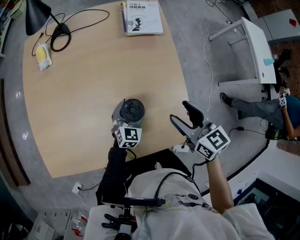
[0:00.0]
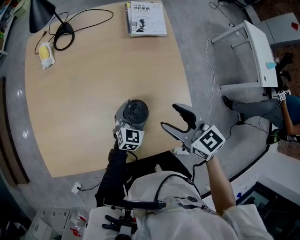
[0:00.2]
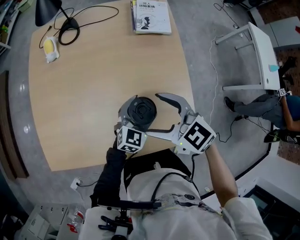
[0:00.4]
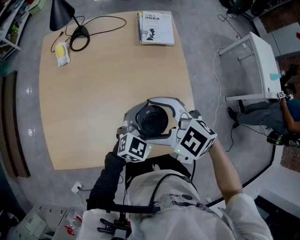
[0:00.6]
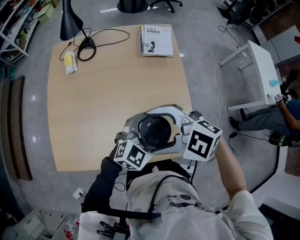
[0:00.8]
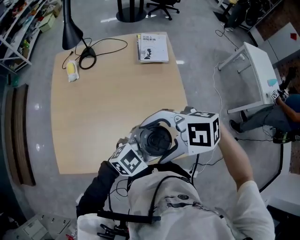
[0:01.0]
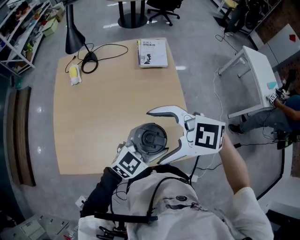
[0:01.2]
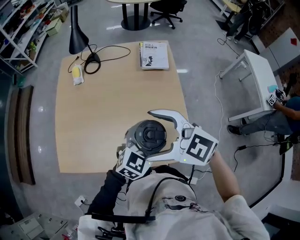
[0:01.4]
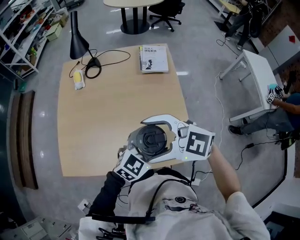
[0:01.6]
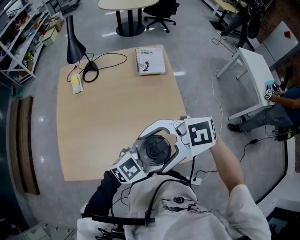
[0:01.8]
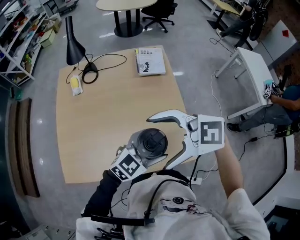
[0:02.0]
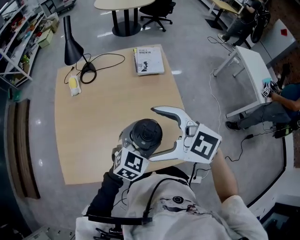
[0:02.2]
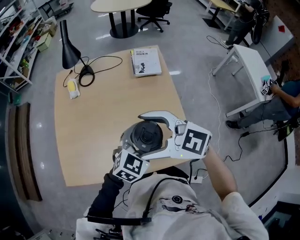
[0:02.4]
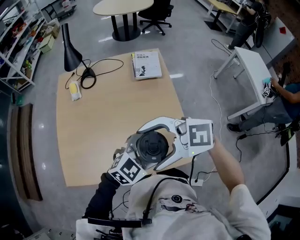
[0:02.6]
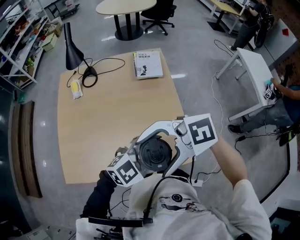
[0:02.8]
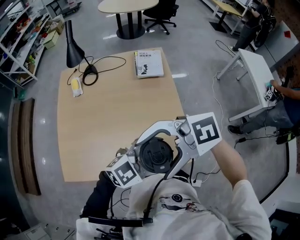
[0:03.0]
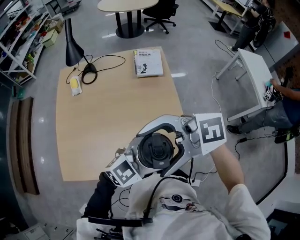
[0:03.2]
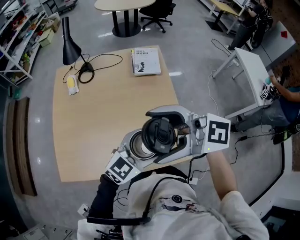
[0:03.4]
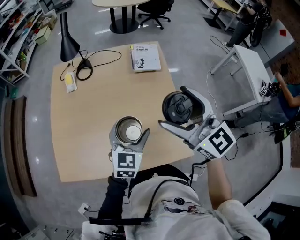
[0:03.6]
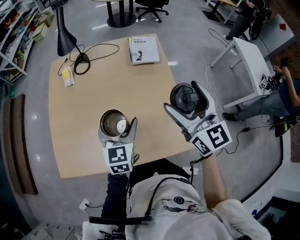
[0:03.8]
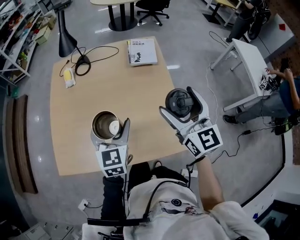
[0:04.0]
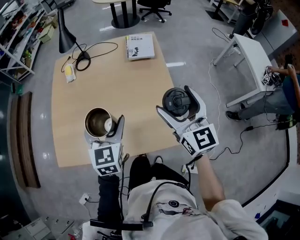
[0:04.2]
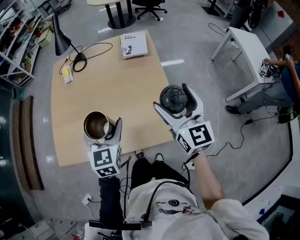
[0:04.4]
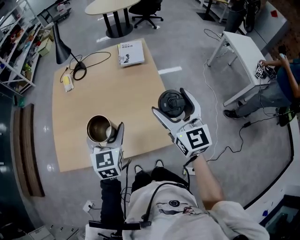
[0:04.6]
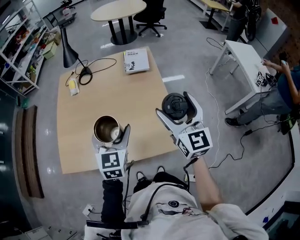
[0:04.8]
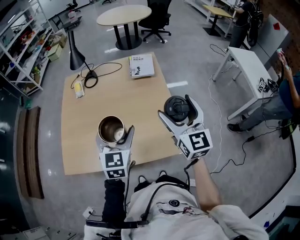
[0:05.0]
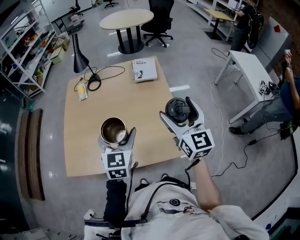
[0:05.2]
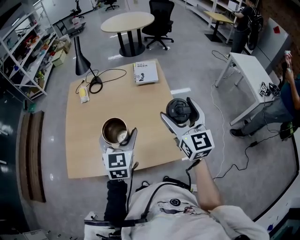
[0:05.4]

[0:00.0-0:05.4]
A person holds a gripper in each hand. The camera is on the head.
0:00.0 to 0:01.4: The right gripper heads upward, covering roughly 15 cm, rotates about 50 degrees, and opens its fingers; the left gripper goes about 25 cm upward.
0:01.4 to 0:02.8: The left gripper shifts by approximately 10 cm, and swivels approximately 30 degrees, while the right gripper ends up roughly 10 cm from where it was, and changes its angle by roughly 40 degrees.
0:02.8 to 0:04.0: The left gripper changes place by some 20 cm, and changes its angle by roughly 70 degrees; the right gripper changes place by some 20 cm, and turns by some 90 degrees.
0:04.0 to 0:05.4: The left gripper goes approximately 10 cm backward and upward. The right gripper shifts approximately 5 cm backward.

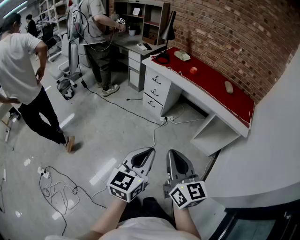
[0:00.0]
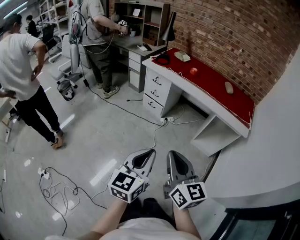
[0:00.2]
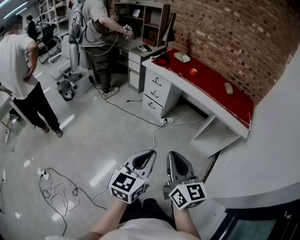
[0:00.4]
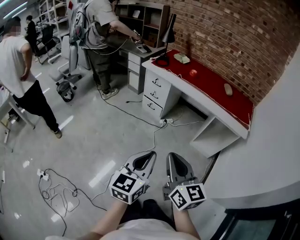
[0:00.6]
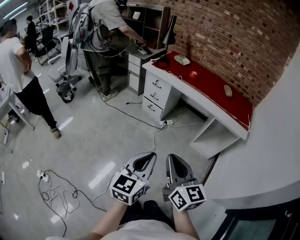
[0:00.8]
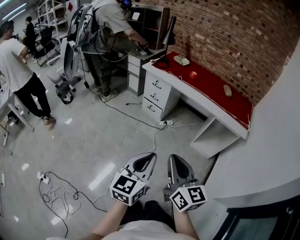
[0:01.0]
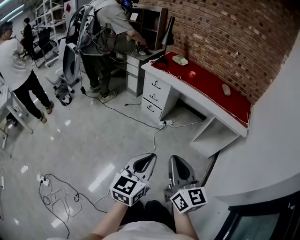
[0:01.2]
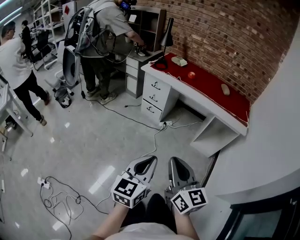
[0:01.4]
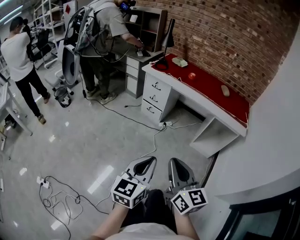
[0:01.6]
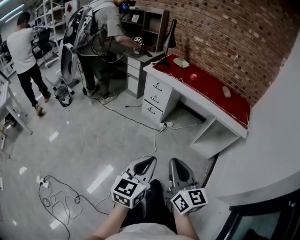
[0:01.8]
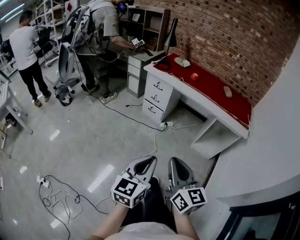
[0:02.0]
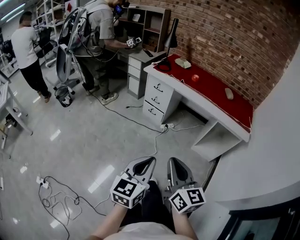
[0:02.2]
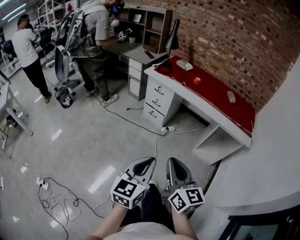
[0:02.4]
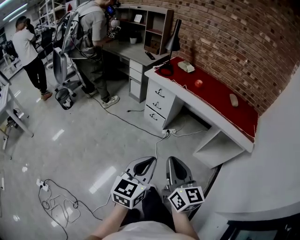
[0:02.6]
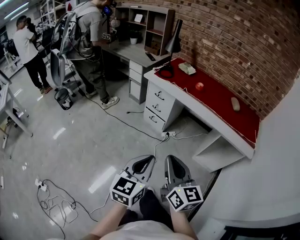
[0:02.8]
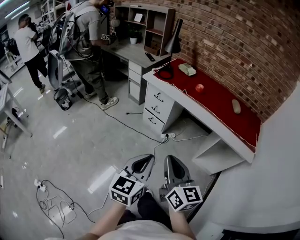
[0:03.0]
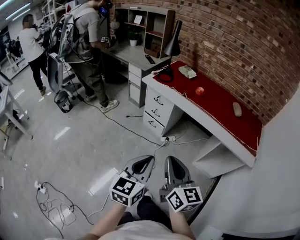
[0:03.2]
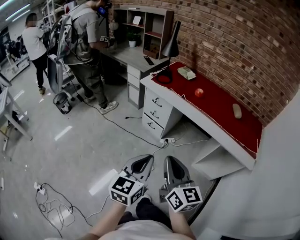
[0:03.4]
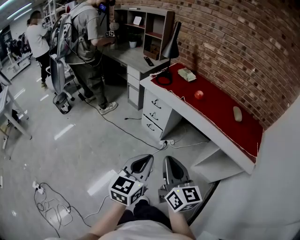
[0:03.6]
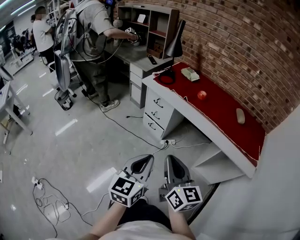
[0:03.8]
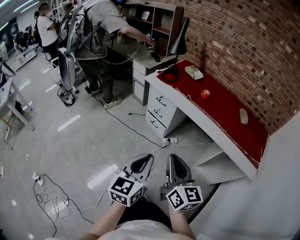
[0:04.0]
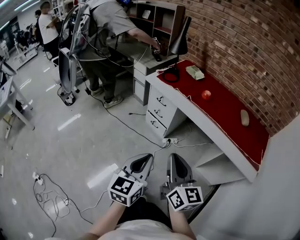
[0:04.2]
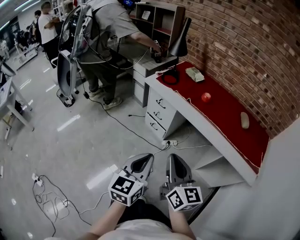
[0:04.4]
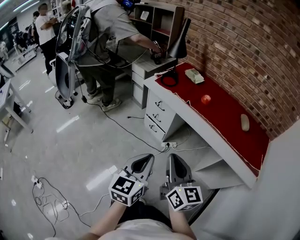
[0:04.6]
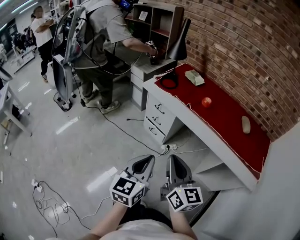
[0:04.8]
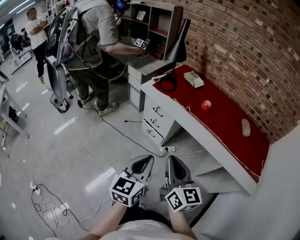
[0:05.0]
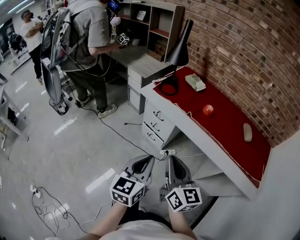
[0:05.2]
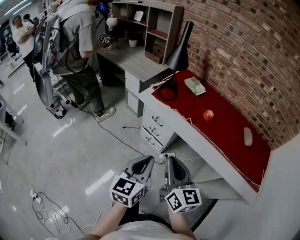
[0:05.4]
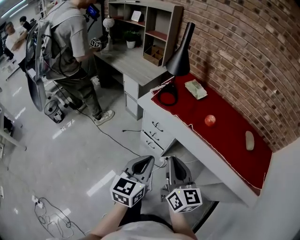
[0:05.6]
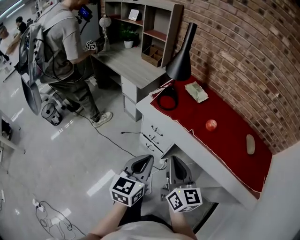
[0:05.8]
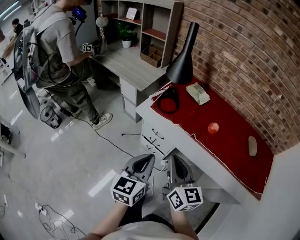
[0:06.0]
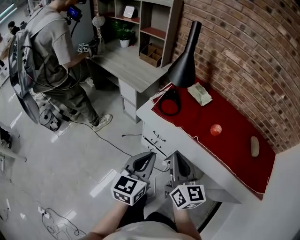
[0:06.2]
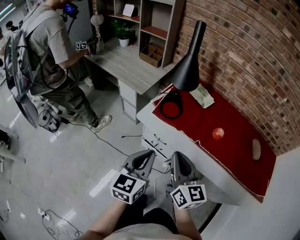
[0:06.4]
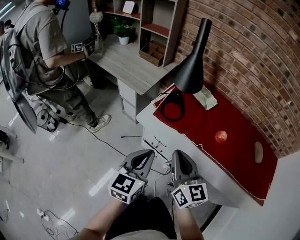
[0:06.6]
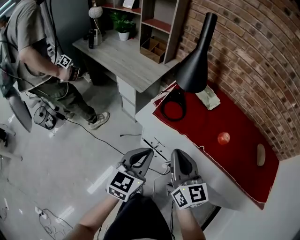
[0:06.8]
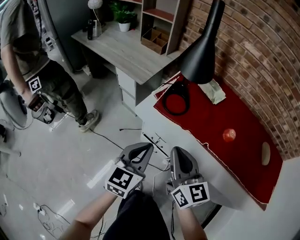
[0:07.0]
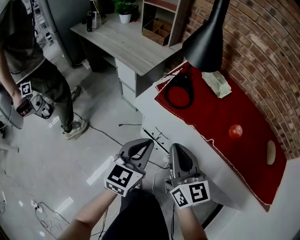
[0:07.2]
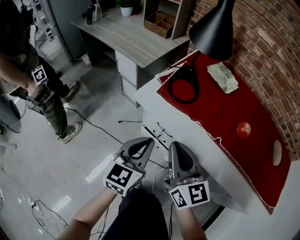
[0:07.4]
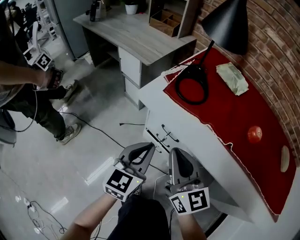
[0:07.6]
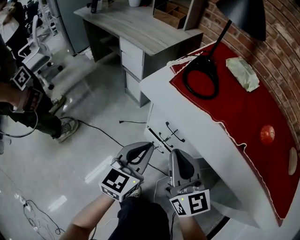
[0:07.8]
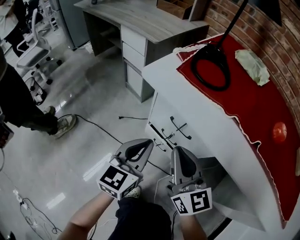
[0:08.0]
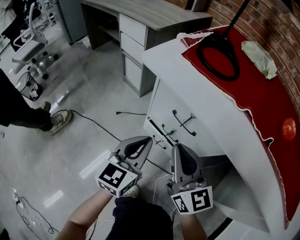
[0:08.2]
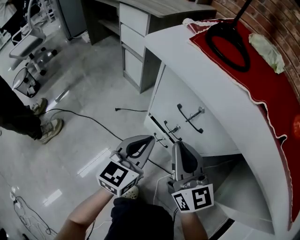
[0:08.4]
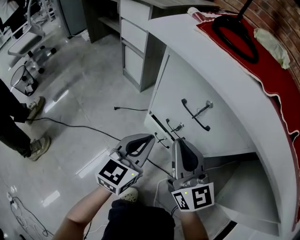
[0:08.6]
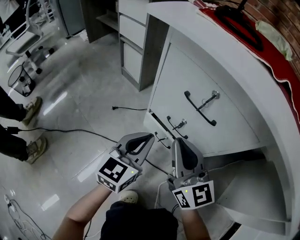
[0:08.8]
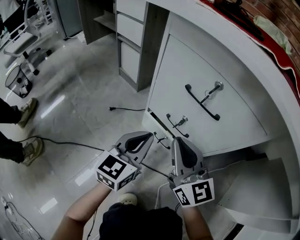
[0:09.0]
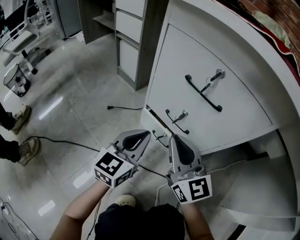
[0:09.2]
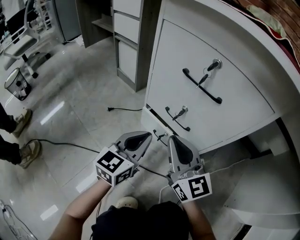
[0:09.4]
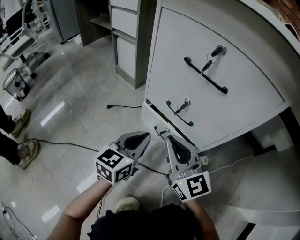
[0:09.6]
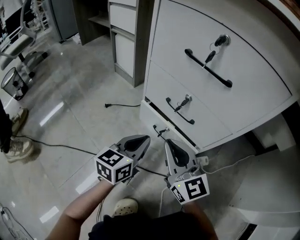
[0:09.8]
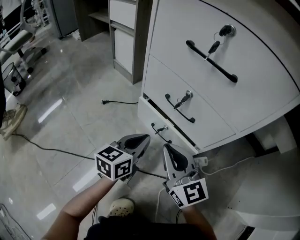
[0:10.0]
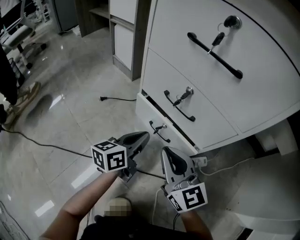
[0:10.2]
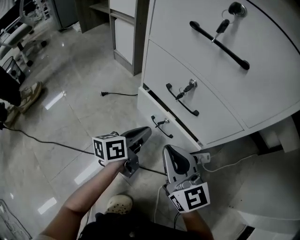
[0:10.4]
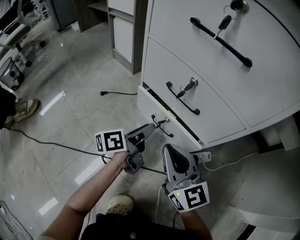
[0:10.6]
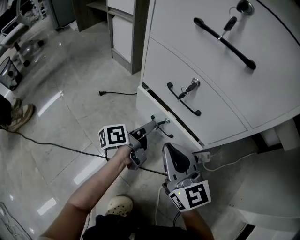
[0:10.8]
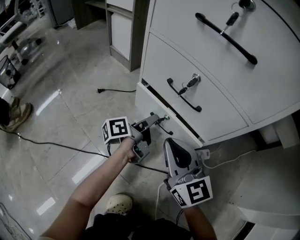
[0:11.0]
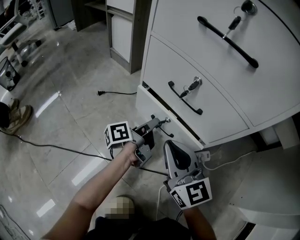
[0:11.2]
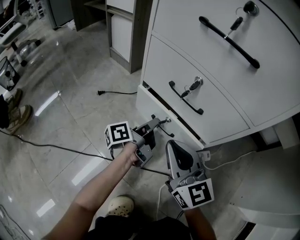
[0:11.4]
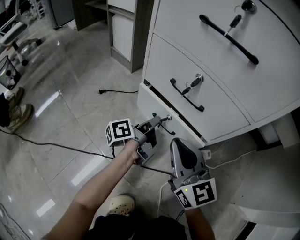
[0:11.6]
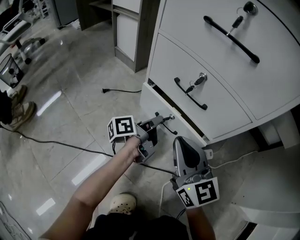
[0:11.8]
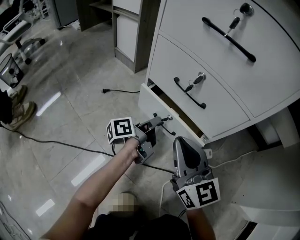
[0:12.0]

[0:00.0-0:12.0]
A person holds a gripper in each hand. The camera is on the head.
0:00.0 to 0:01.6: Both grippers travel together to the left, some 5 cm.
0:01.6 to 0:03.0: Both grippers travel together forward, some 20 cm.
0:03.0 to 0:04.4: The two grippers go approximately 10 cm forward.
0:04.4 to 0:06.0: Both grippers travel together forward, roughly 30 cm.
0:06.0 to 0:07.6: Both grippers move downward and forward, approximately 25 cm.
0:07.6 to 0:09.0: Both grippers travel together downward, some 30 cm.
0:09.0 to 0:10.4: Both grippers move downward, roughly 20 cm. The left gripper rotates around the line of its fingers by roughly 40 degrees, counterclockwise from behind.
0:10.4 to 0:12.0: The left gripper rotates approximately 30 degrees, and opens and closes again.

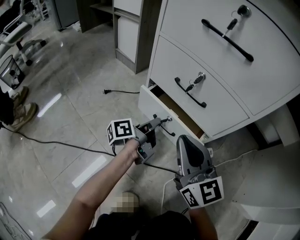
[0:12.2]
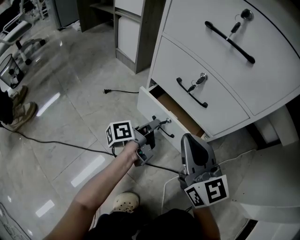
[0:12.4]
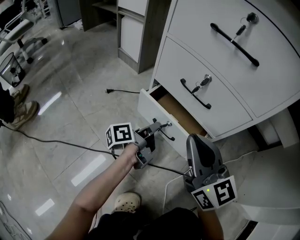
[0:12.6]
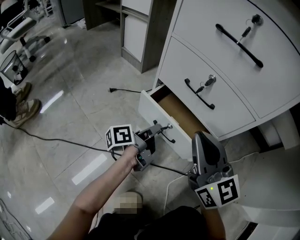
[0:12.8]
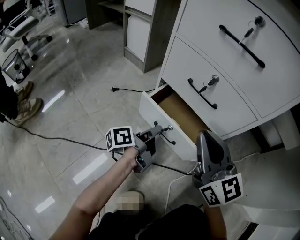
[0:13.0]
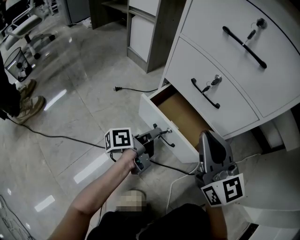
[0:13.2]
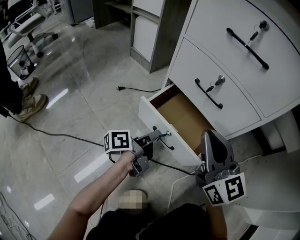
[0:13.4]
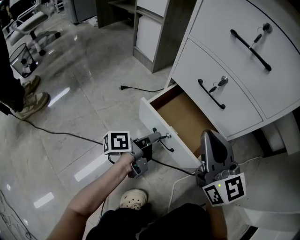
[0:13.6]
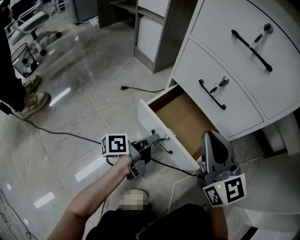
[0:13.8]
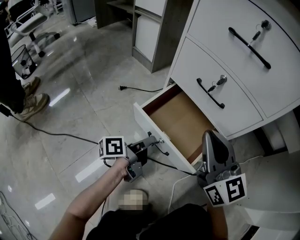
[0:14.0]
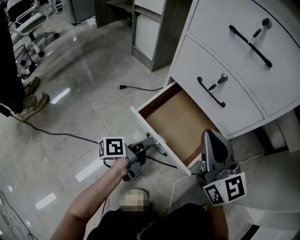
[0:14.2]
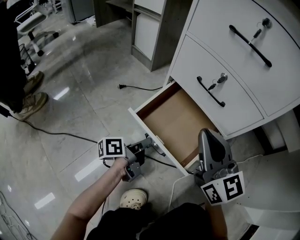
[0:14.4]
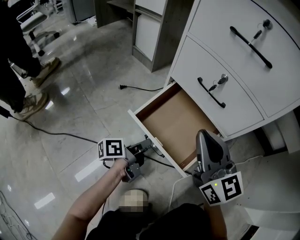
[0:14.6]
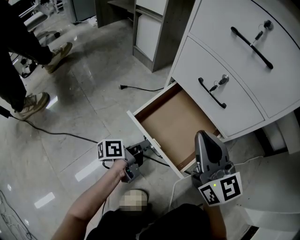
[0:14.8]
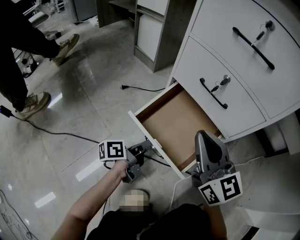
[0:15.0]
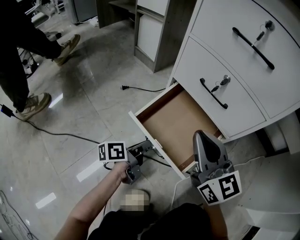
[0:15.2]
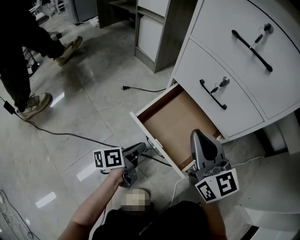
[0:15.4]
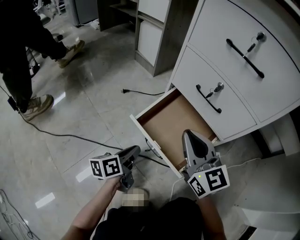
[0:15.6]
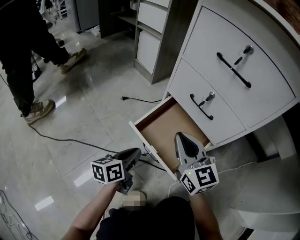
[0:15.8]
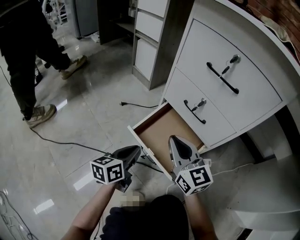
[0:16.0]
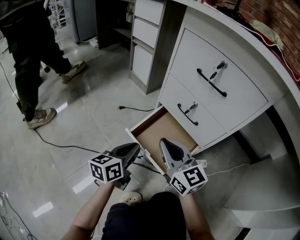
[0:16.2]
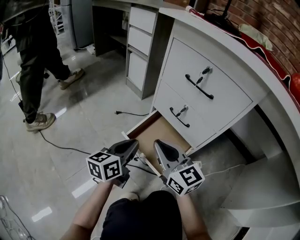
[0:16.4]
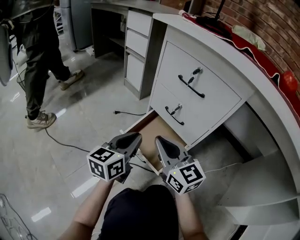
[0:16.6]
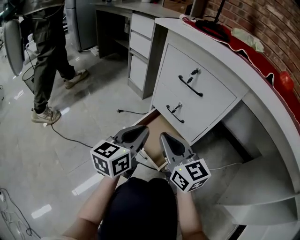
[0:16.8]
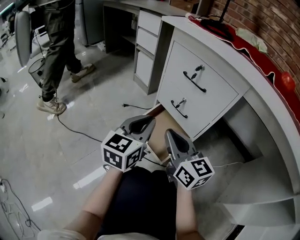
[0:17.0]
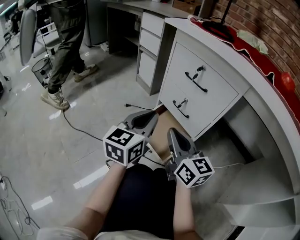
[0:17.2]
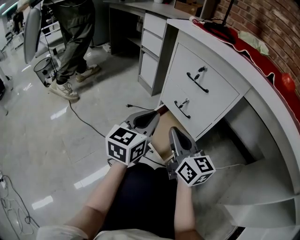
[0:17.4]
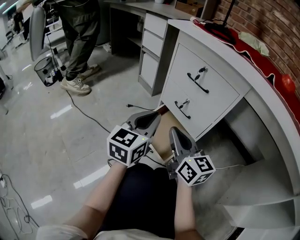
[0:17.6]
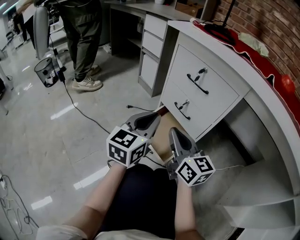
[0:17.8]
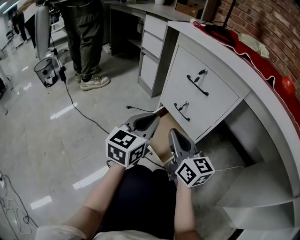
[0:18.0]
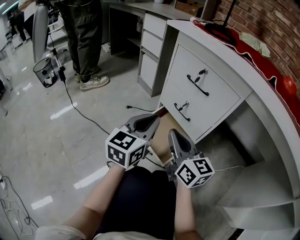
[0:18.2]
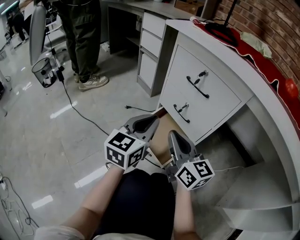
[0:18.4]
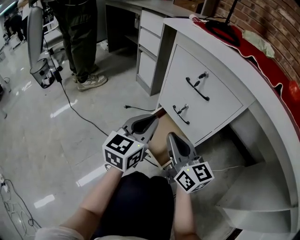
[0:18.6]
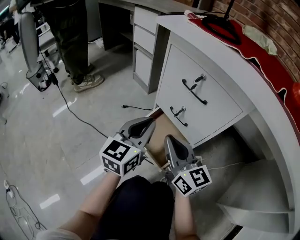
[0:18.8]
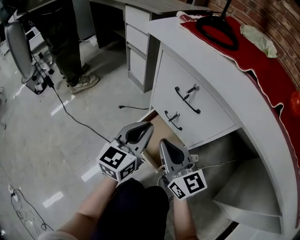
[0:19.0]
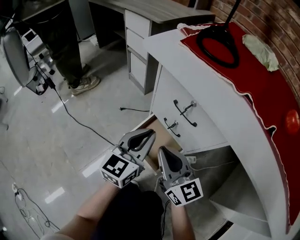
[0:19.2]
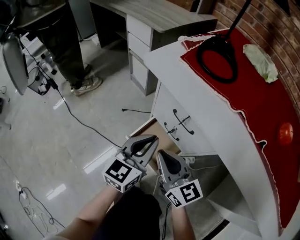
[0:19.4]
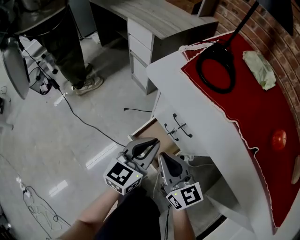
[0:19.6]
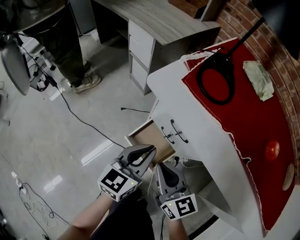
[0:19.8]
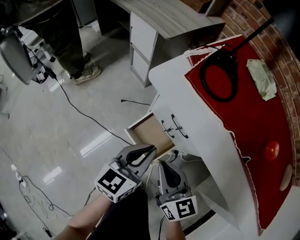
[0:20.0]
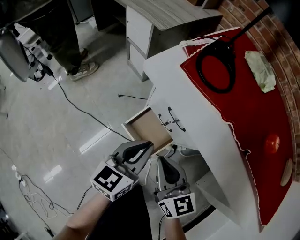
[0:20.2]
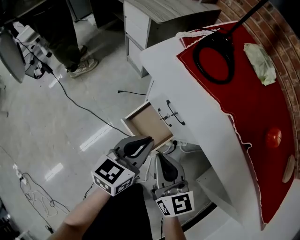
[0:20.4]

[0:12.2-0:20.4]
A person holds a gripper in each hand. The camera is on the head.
0:12.2 to 0:13.8: The left gripper is displaced backward and to the left by some 10 cm.
0:13.8 to 0:15.4: The left gripper shifts by roughly 5 cm.
0:15.4 to 0:17.2: The right gripper travels upward and backward by approximately 15 cm; the left gripper goes approximately 35 cm upward, and rolls clockwise, seen from behind, by approximately 50 degrees.
0:17.2 to 0:18.8: The grippers stay close to where they were, moving slightly.
0:18.8 to 0:20.4: The grippers both shift upward by about 15 cm. The left gripper swivels approximately 20 degrees.
